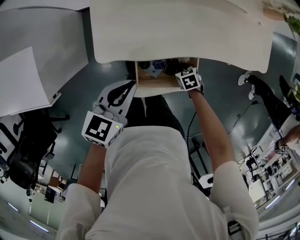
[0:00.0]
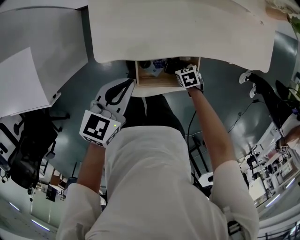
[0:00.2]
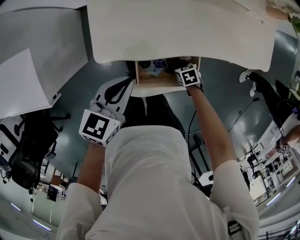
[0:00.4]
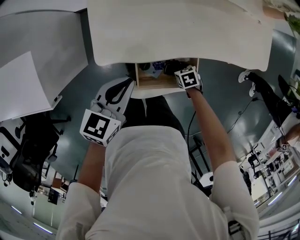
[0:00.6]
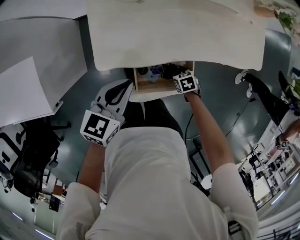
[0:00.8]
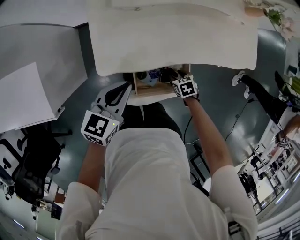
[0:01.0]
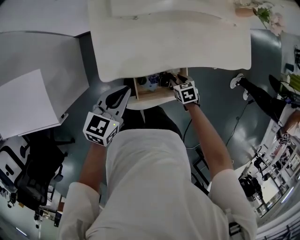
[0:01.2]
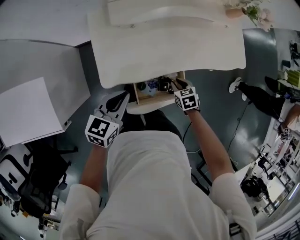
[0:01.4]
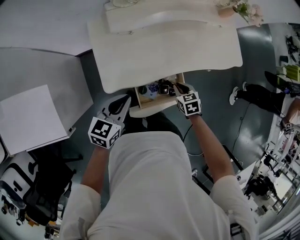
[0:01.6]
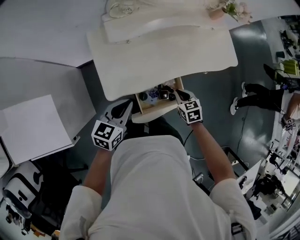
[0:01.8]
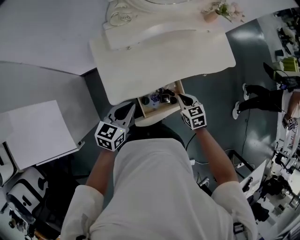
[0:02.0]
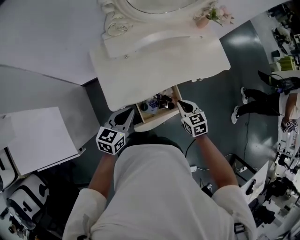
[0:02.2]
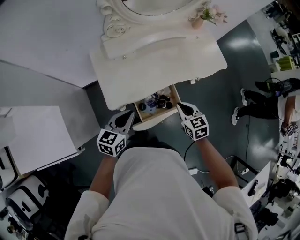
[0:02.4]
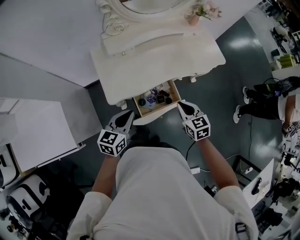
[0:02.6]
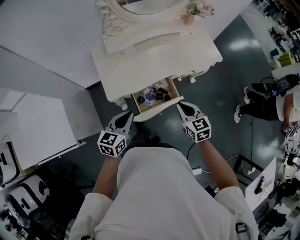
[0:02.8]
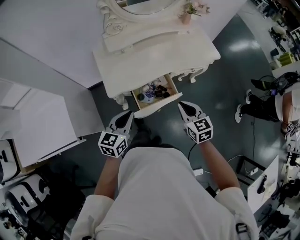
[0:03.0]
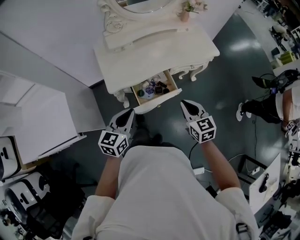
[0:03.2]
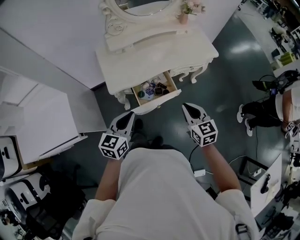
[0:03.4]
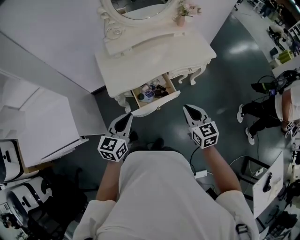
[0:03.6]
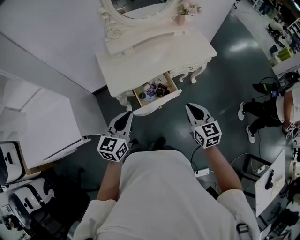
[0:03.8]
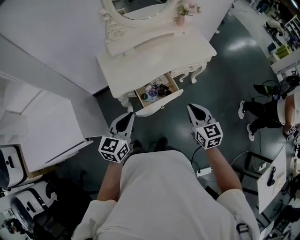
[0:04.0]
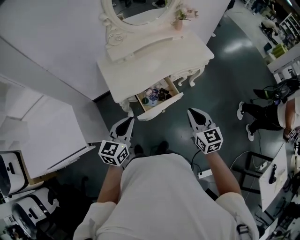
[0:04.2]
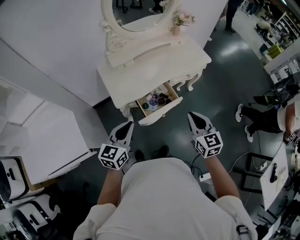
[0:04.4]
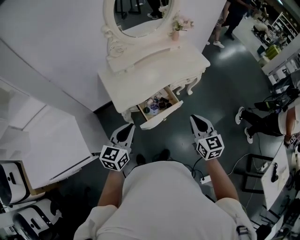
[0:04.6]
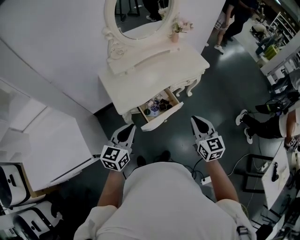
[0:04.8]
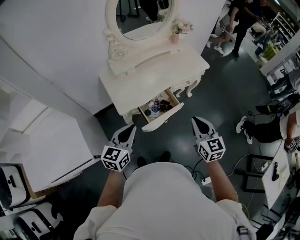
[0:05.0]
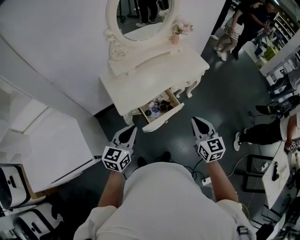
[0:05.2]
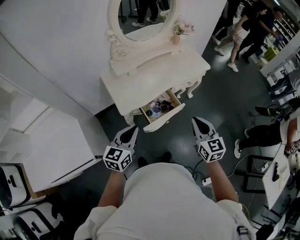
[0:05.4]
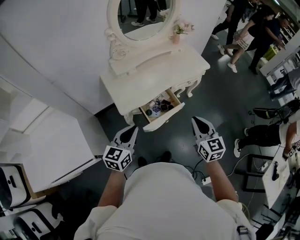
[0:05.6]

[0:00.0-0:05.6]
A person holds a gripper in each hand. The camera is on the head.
0:00.0 to 0:01.4: The right gripper shifts some 15 cm upward, and opens, then closes again.
0:01.4 to 0:02.8: The right gripper heads upward and backward, covering approximately 25 cm, and tilts its fingers approximately 30 degrees upward; the left gripper heads backward and upward, covering roughly 15 cm.
0:02.8 to 0:04.2: Both grippers move backward and upward, approximately 15 cm.
0:04.2 to 0:05.6: The right gripper moves some 5 cm.

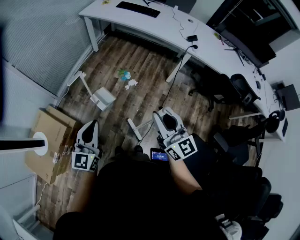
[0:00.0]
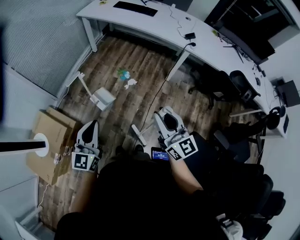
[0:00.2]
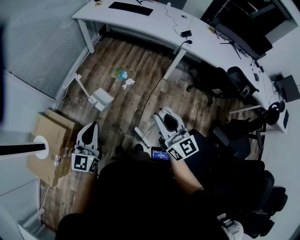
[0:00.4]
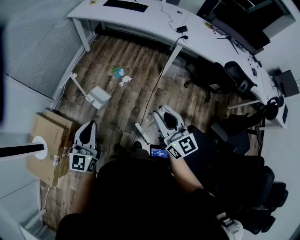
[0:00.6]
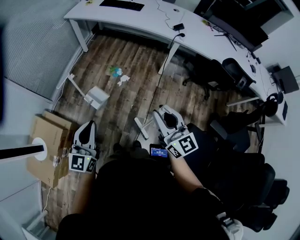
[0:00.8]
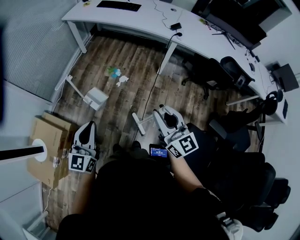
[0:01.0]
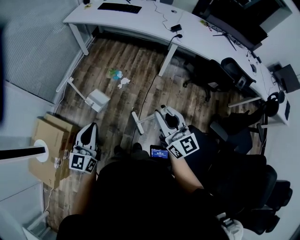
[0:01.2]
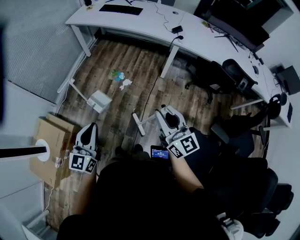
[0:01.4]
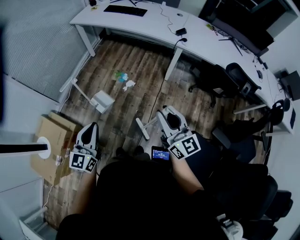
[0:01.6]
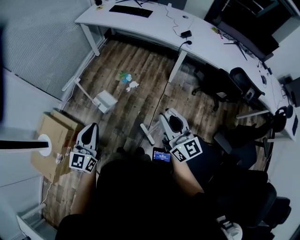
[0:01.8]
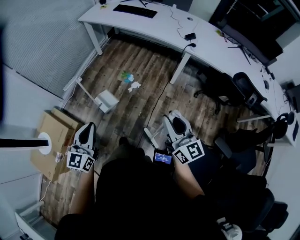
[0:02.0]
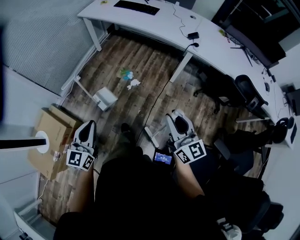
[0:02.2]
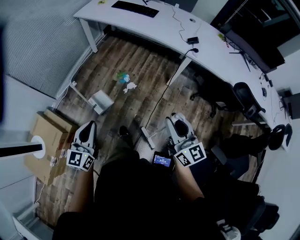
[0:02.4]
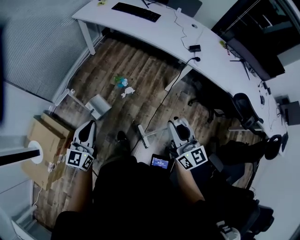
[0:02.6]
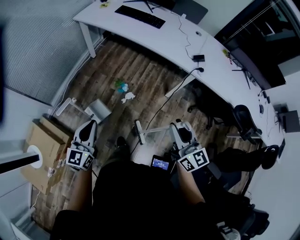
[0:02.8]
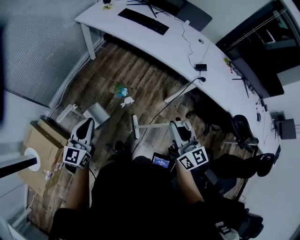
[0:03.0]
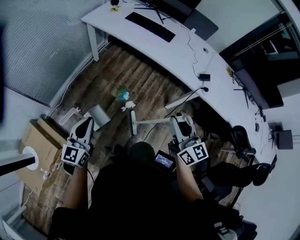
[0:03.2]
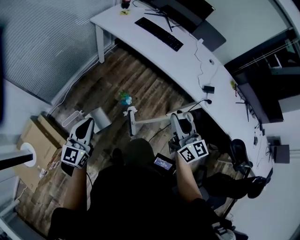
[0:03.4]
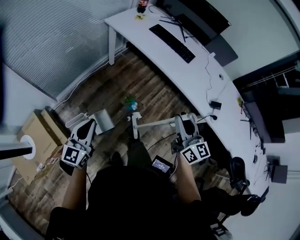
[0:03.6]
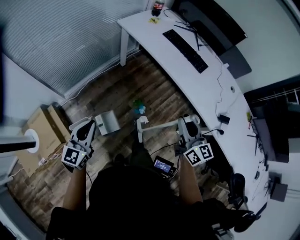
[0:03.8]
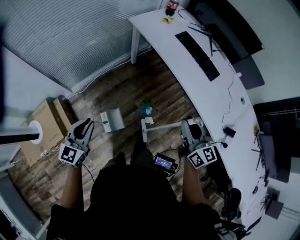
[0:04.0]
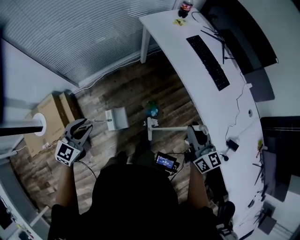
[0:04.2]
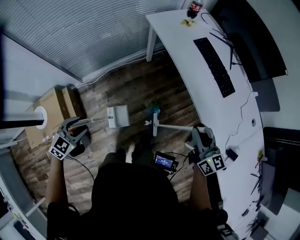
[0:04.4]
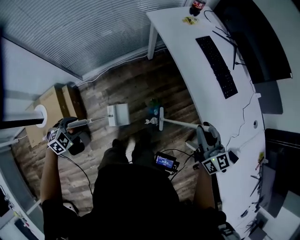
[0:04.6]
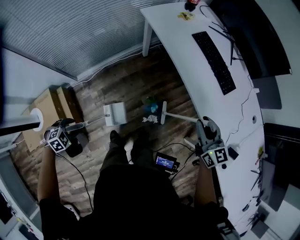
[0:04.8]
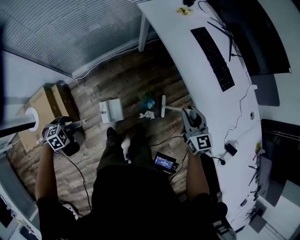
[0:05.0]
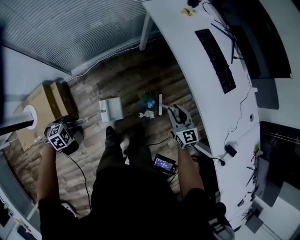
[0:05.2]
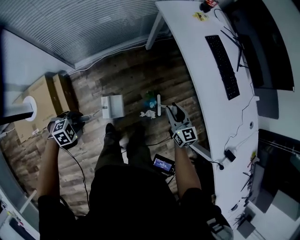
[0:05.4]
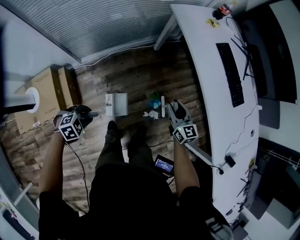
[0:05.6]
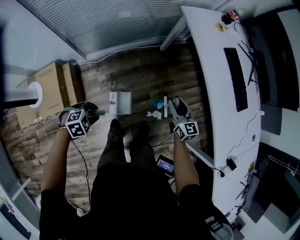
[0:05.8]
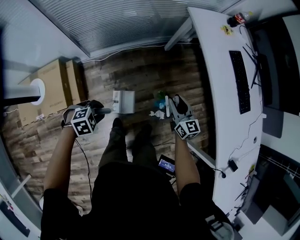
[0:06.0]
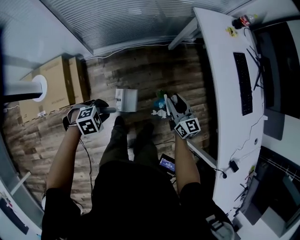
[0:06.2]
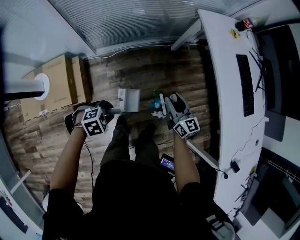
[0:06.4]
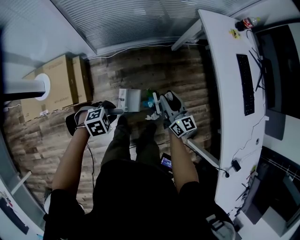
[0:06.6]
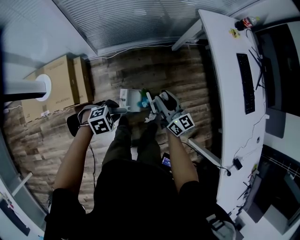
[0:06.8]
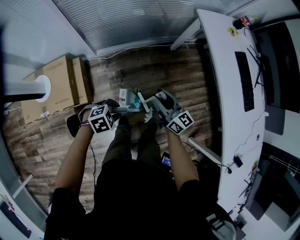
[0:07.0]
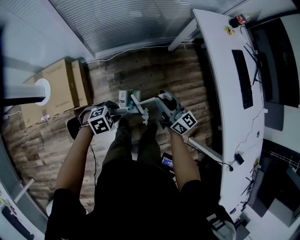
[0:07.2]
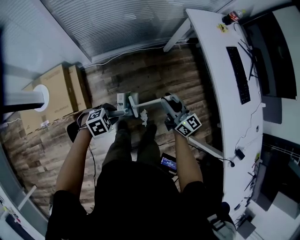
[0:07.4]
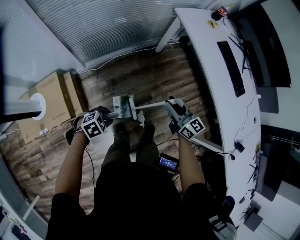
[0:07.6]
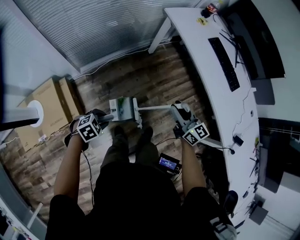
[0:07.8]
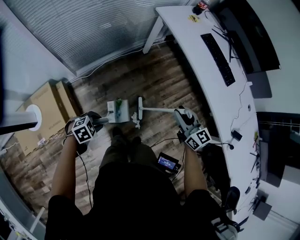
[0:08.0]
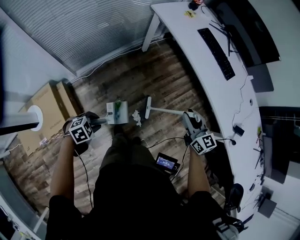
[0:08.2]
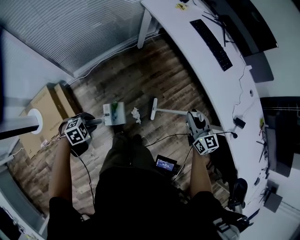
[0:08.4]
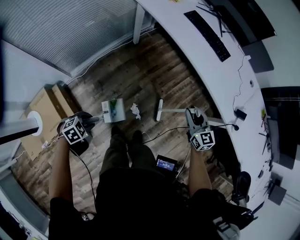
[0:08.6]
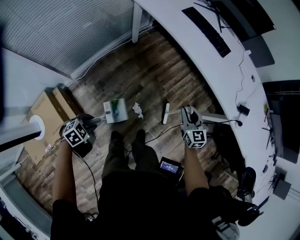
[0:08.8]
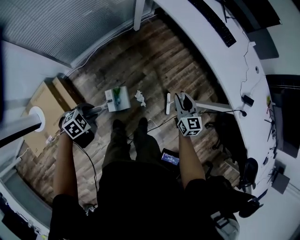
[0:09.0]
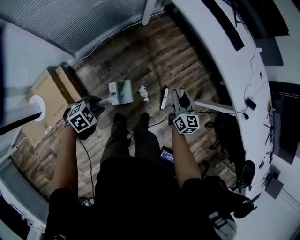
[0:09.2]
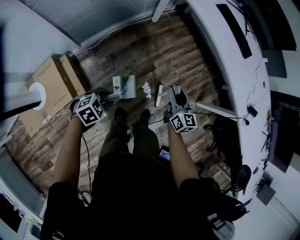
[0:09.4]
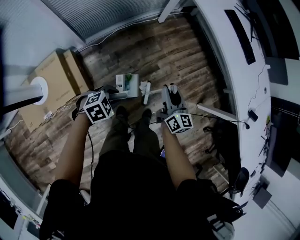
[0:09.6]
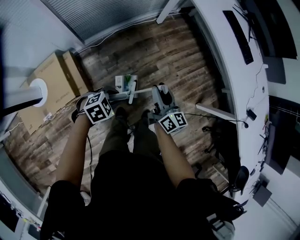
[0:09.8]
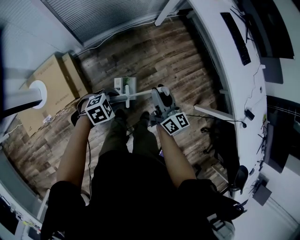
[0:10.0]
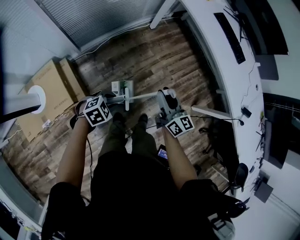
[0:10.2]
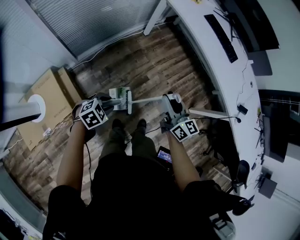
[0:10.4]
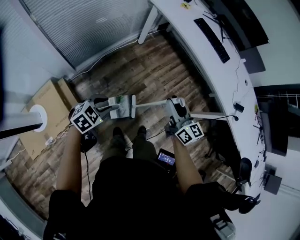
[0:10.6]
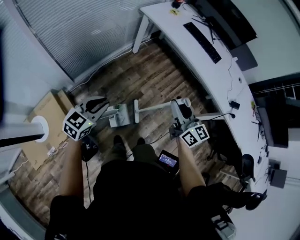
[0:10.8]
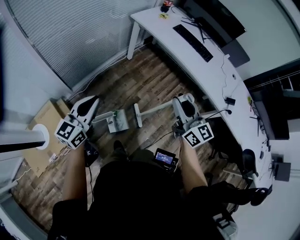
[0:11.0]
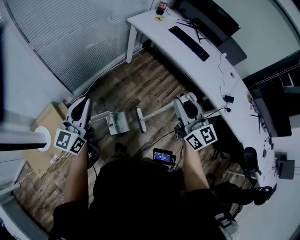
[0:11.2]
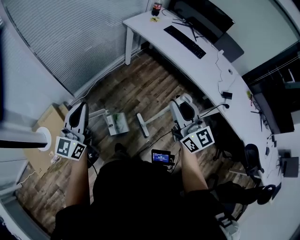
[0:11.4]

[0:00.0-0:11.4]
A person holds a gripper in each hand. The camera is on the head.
0:00.0 to 0:01.4: Both grippers move to the right, approximately 10 cm.
0:01.4 to 0:02.8: The two grippers go some 20 cm forward.
0:02.8 to 0:04.2: The right gripper shifts roughly 40 cm forward, and rotates about 30 degrees, while the left gripper shifts approximately 25 cm forward and to the left, changes its angle by roughly 30 degrees, and opens up.
0:04.2 to 0:05.6: The two grippers go approximately 20 cm downward. The left gripper tips its fingers downward by roughly 40 degrees, and opens and closes again.
0:05.6 to 0:07.2: The right gripper heads to the left and backward, covering approximately 20 cm, and turns by roughly 30 degrees.
0:07.2 to 0:08.6: The left gripper changes place by approximately 5 cm; the right gripper shifts by some 35 cm, and swivels some 50 degrees.
0:08.6 to 0:10.0: The right gripper is displaced to the left and backward by approximately 35 cm, and rotates approximately 40 degrees.
0:10.0 to 0:11.4: The left gripper is displaced upward by about 35 cm, angles its fingers upward, by roughly 70 degrees, and closes, while the right gripper moves upward and to the right, about 30 cm, and swivels about 30 degrees.

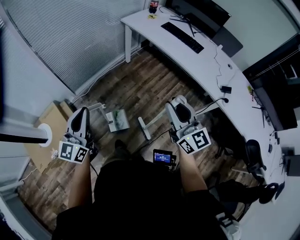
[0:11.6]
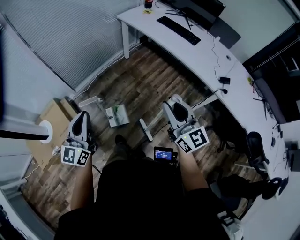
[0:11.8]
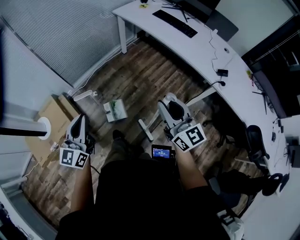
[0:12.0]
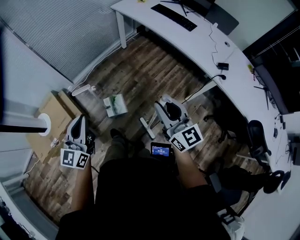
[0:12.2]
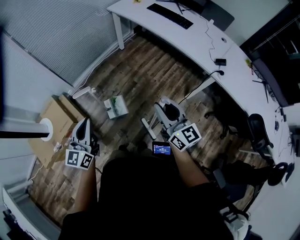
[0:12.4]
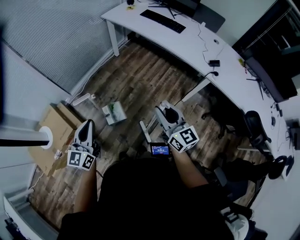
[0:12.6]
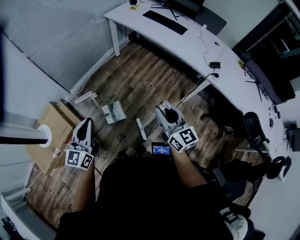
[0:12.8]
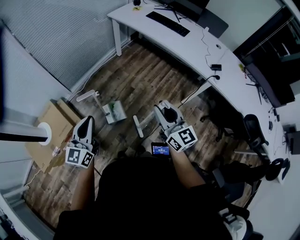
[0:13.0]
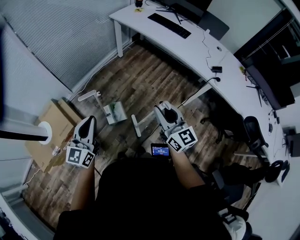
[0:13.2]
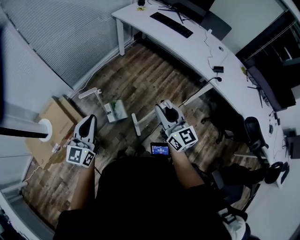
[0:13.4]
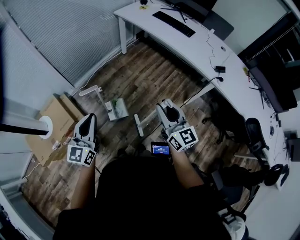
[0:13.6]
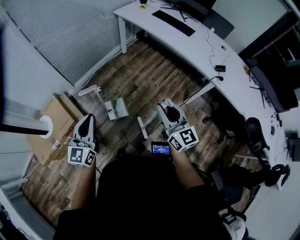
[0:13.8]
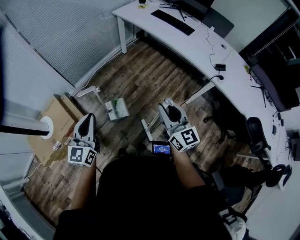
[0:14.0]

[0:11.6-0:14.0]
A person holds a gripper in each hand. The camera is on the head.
0:11.6 to 0:12.8: Both grippers travel together backward and downward, about 15 cm.
0:12.8 to 0:14.0: There are only small adjustments of the grippers.

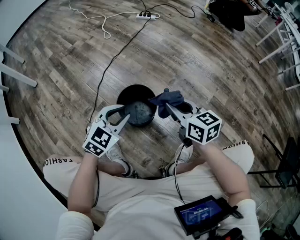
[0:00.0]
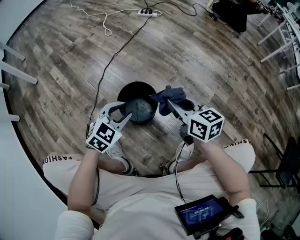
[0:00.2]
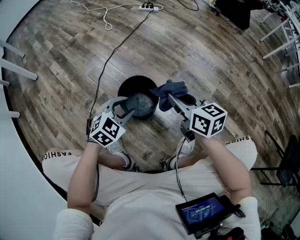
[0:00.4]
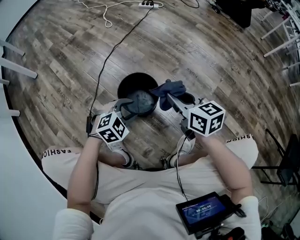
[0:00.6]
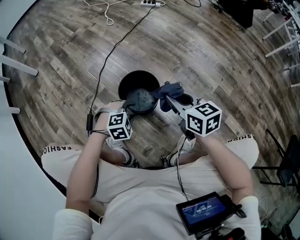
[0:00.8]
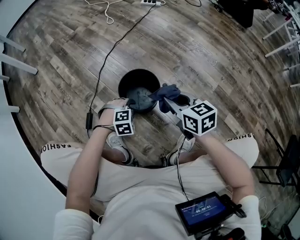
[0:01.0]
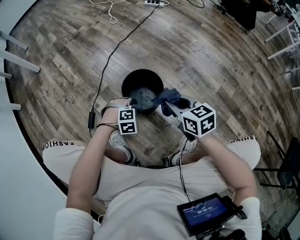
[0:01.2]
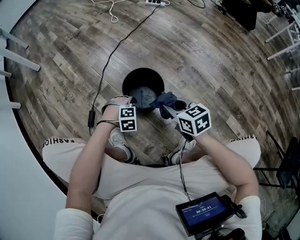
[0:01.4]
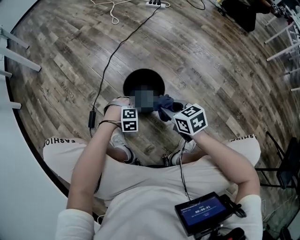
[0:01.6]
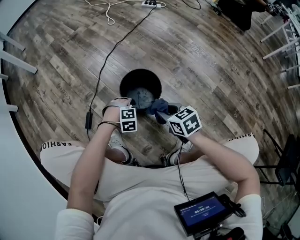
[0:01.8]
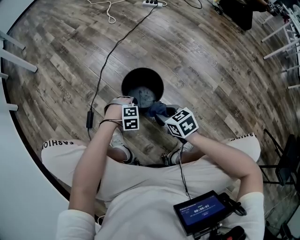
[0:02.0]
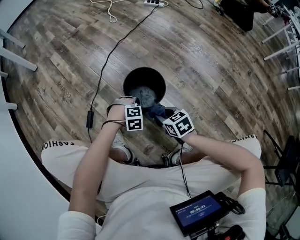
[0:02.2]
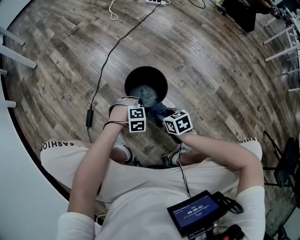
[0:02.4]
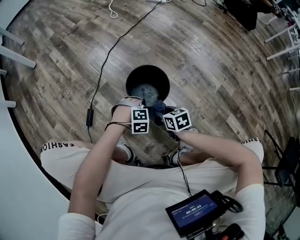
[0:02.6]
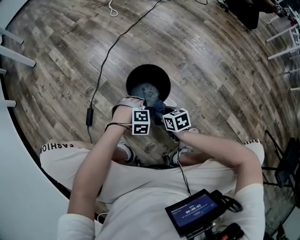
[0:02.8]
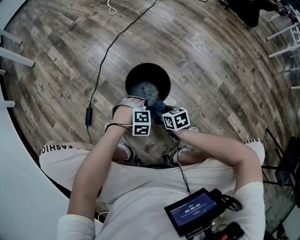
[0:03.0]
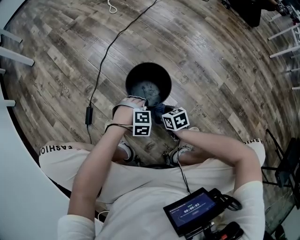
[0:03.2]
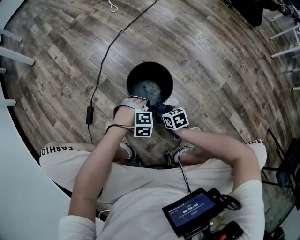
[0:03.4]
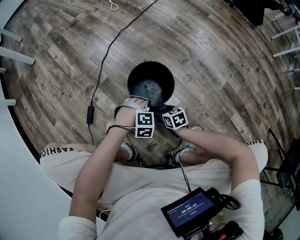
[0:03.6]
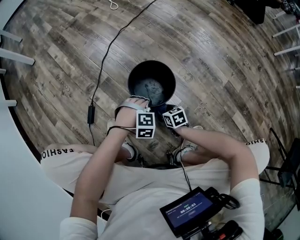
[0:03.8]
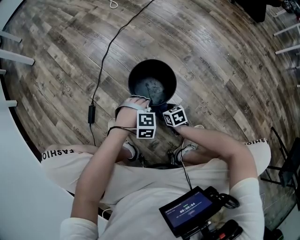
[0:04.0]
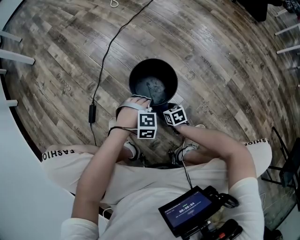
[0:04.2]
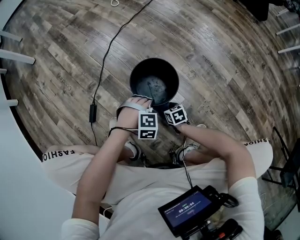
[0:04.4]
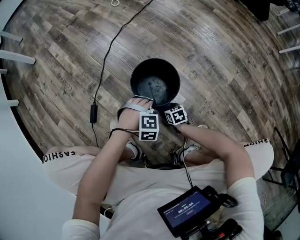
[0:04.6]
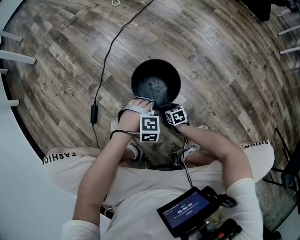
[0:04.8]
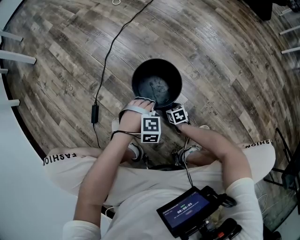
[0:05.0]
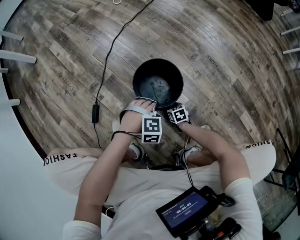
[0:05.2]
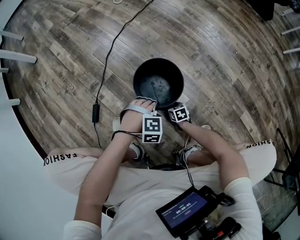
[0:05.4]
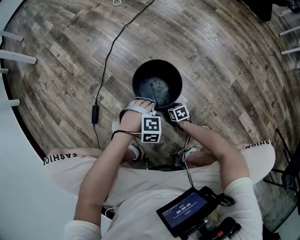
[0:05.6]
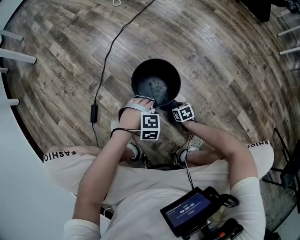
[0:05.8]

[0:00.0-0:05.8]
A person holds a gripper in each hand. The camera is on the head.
0:00.0 to 0:01.4: The right gripper shifts roughly 10 cm downward.
0:01.4 to 0:02.8: The right gripper shifts some 15 cm downward.
0:02.8 to 0:04.4: The right gripper shifts some 15 cm downward.
0:04.4 to 0:05.8: The right gripper moves approximately 10 cm downward and comes back.
